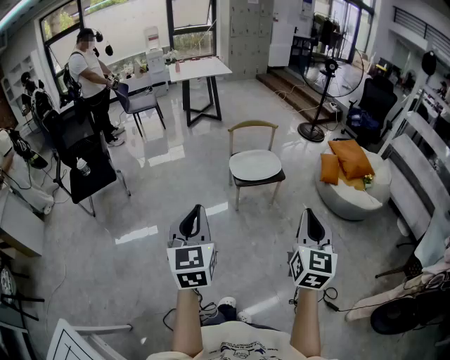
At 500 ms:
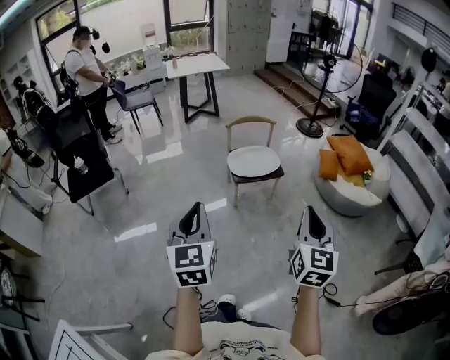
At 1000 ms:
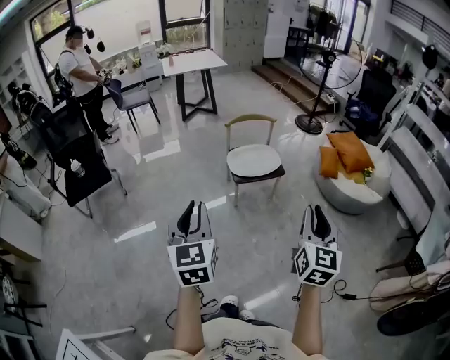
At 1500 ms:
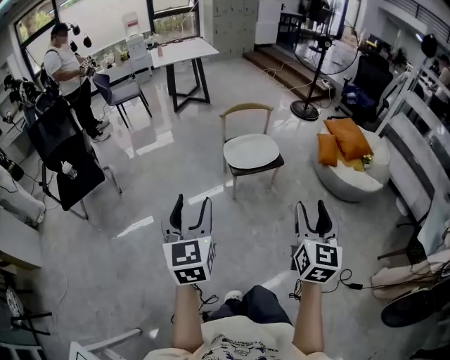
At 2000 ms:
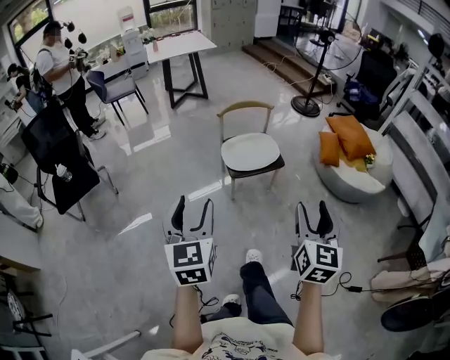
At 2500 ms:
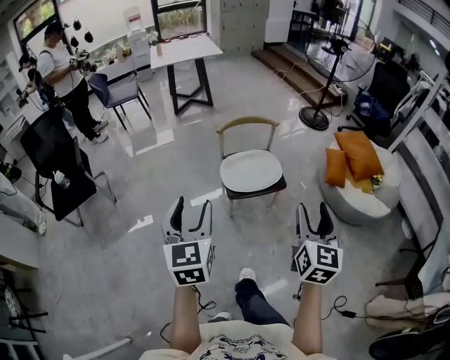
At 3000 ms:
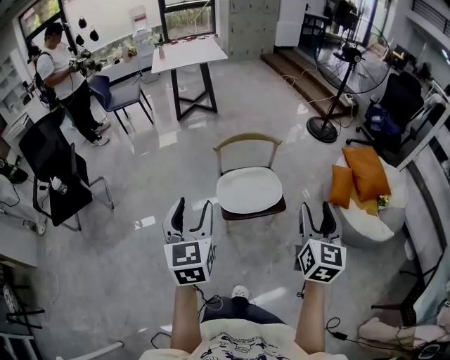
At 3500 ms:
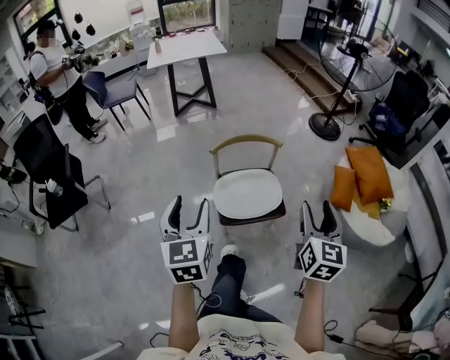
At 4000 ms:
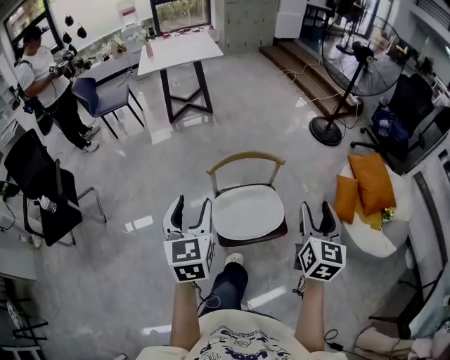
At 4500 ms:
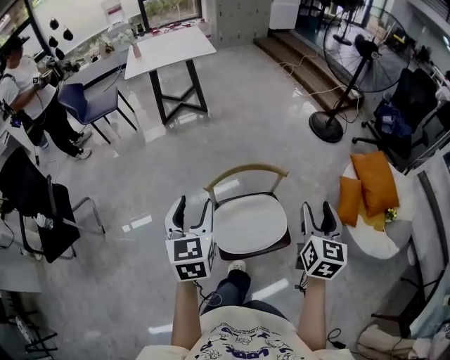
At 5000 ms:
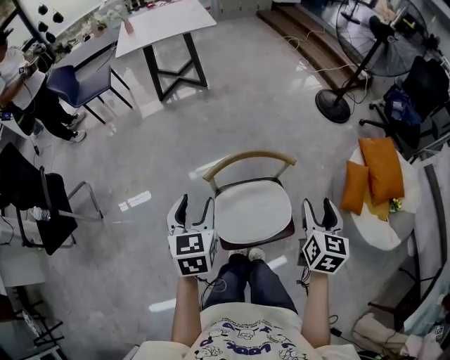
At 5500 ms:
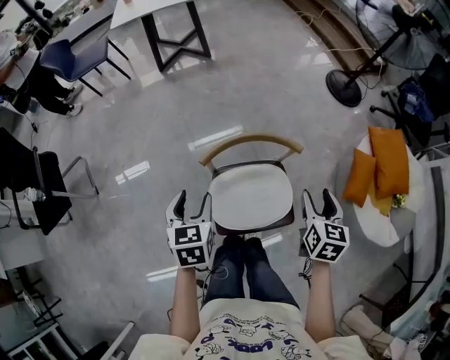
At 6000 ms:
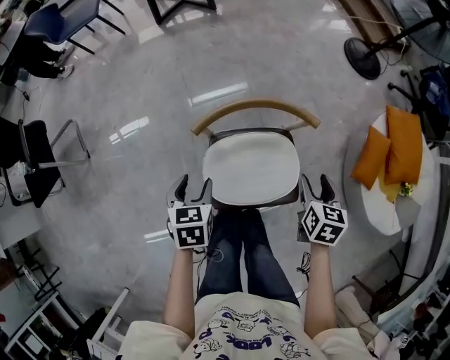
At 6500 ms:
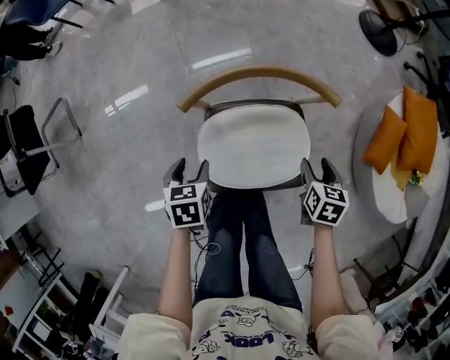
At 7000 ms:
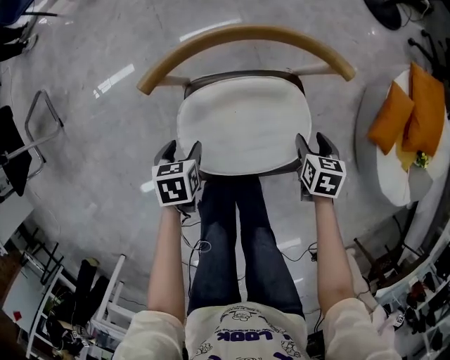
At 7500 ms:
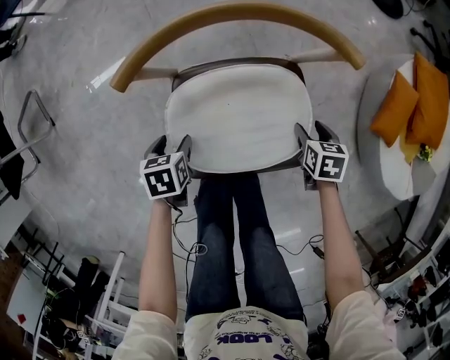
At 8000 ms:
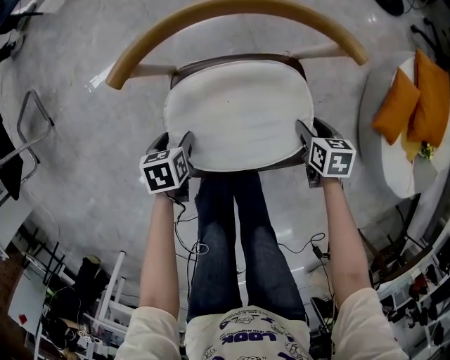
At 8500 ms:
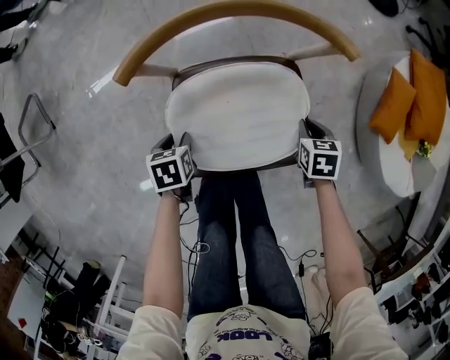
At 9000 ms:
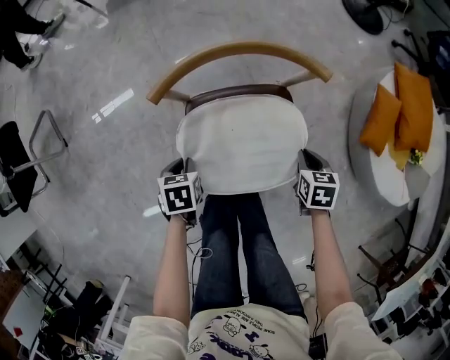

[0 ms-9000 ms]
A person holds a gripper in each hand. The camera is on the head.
0 ms to 2000 ms: Both grippers move forward, roughly 25 cm. The left gripper opens. The right gripper opens.
2000 ms to 4500 ms: Both grippers are carried forward, some 90 cm.
4500 ms to 7000 ms: The two grippers go approximately 70 cm downward. The left gripper angles its fingers downward, by some 50 degrees; the right gripper tips its fingers downward by some 50 degrees.
7000 ms to 9000 ms: The right gripper heads upward, covering some 5 cm, and closes up. The left gripper travels downward and back again, roughly 10 cm each way, and closes up.

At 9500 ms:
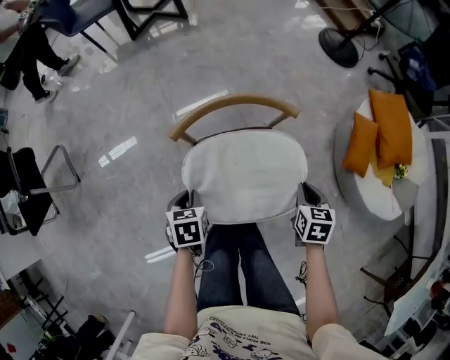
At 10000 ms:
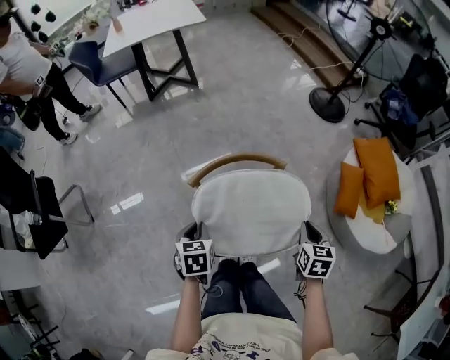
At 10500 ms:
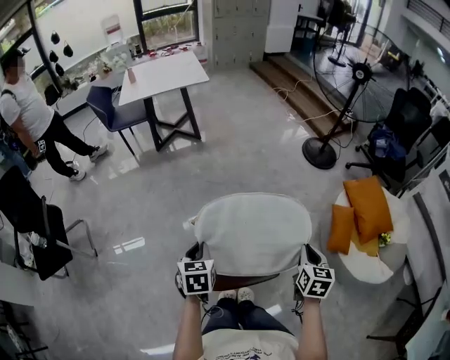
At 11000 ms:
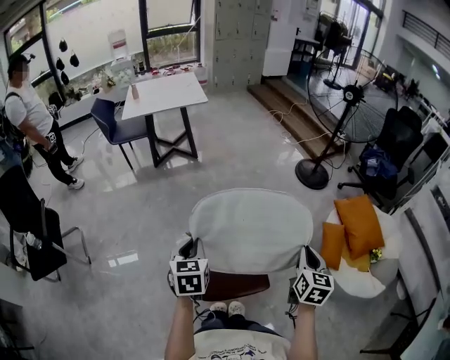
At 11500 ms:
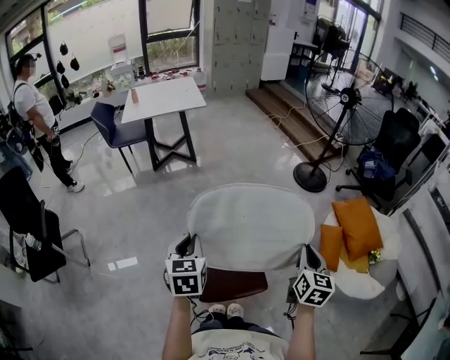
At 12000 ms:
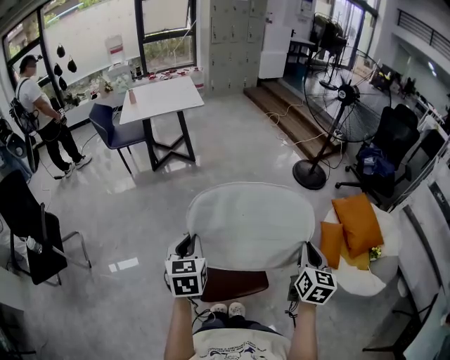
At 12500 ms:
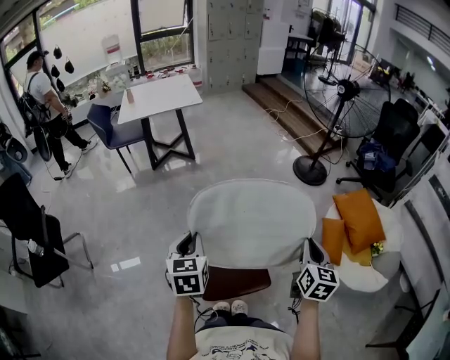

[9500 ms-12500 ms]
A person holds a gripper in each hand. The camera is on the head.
9500 ms to 11000 ms: The two grippers go some 40 cm upward. The left gripper angles its fingers upward, by some 30 degrees, while the right gripper tips its fingers upward by roughly 30 degrees.
11000 ms to 12500 ms: The grippers stay close to where they were, moving slightly.

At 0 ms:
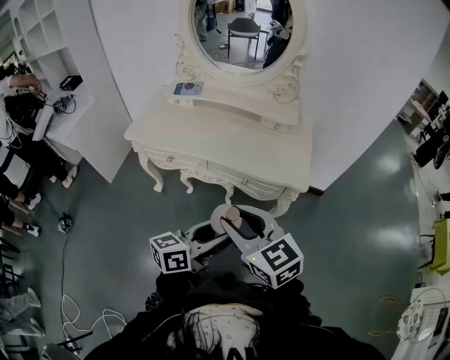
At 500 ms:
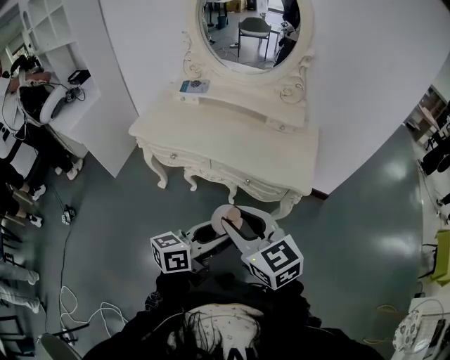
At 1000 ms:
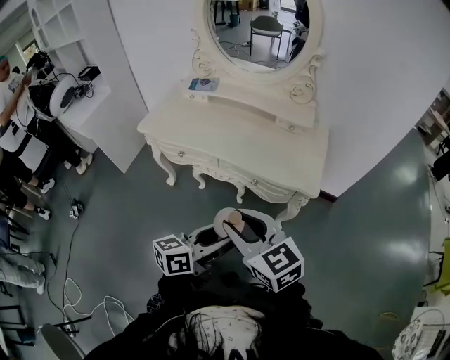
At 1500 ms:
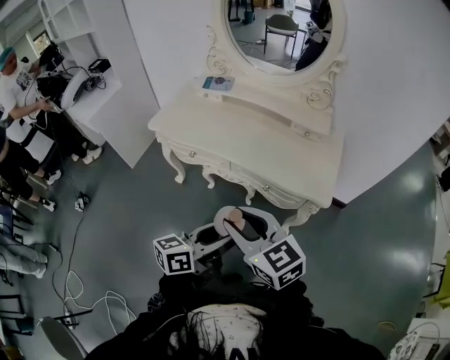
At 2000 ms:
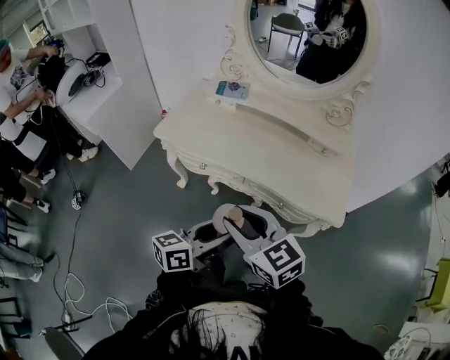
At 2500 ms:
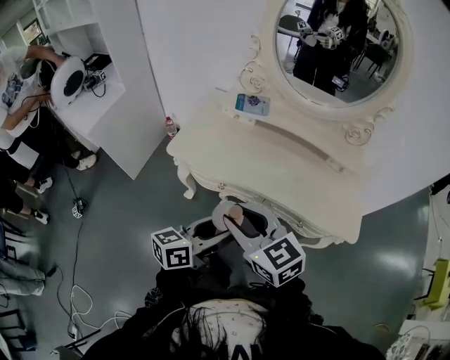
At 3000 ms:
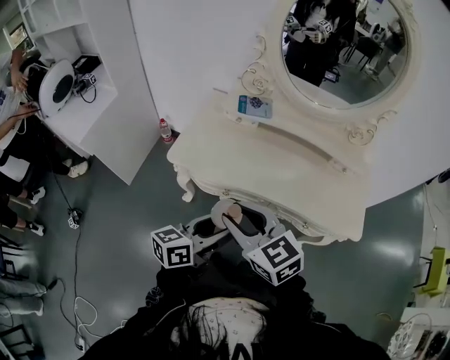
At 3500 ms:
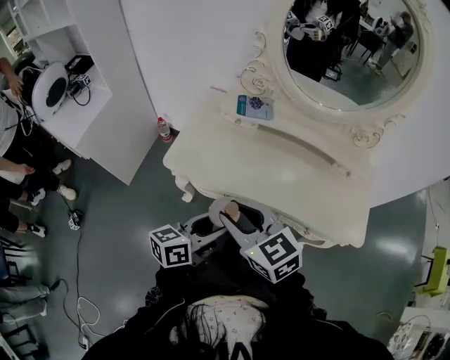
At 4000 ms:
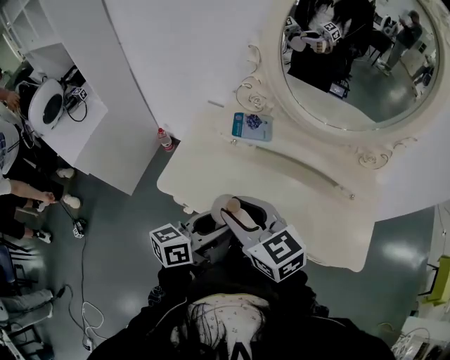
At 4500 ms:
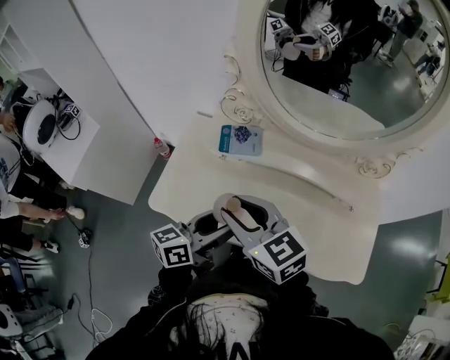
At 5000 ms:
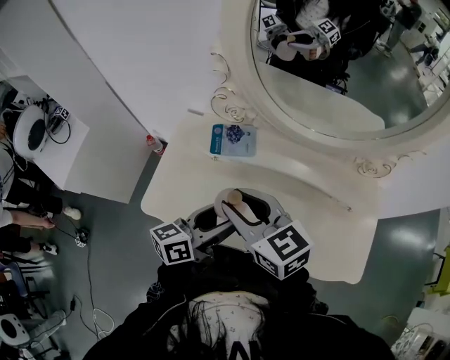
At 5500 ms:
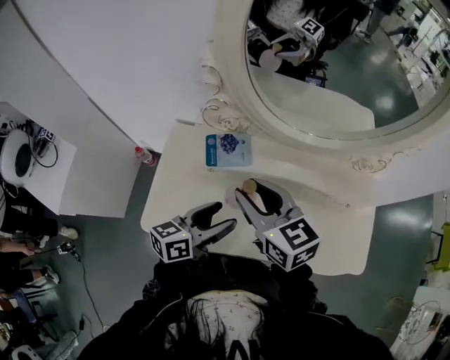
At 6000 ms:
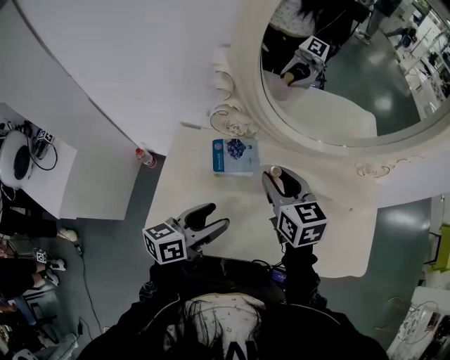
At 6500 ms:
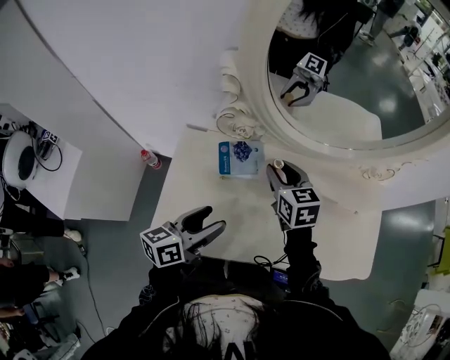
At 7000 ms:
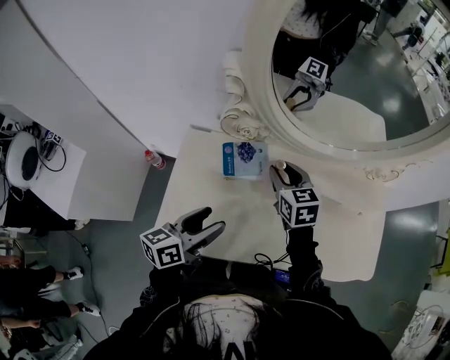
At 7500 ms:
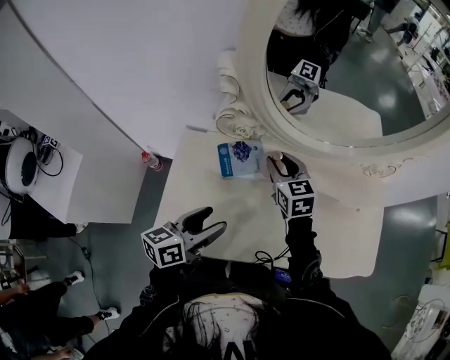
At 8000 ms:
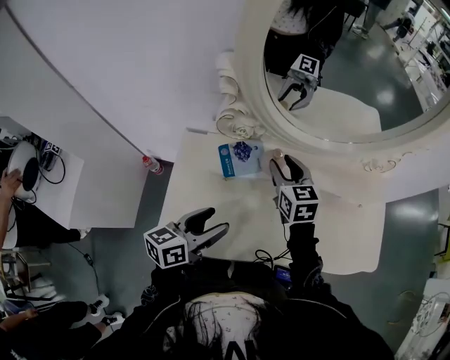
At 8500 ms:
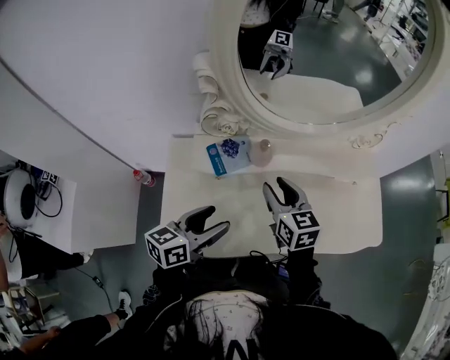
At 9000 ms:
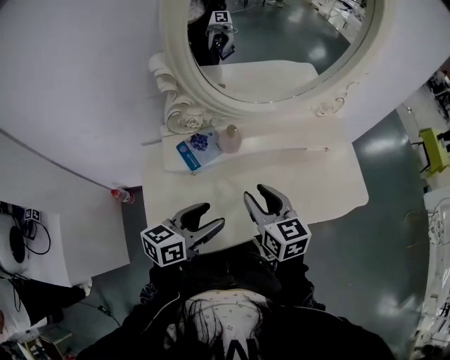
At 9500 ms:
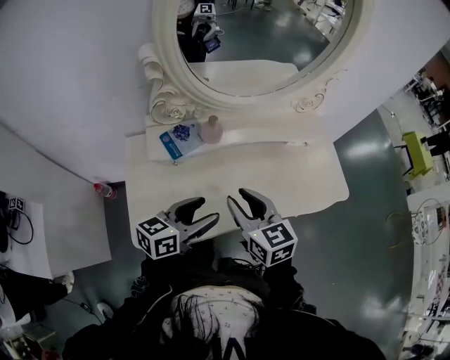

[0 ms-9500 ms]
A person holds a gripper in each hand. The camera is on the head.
0 ms to 2000 ms: Both grippers move to the left and forward, approximately 15 cm.
2000 ms to 4000 ms: The two grippers go some 30 cm forward and to the left.
4000 ms to 5500 ms: The grippers both shift forward by about 15 cm.
5500 ms to 7500 ms: The left gripper heads to the left, covering some 10 cm. The right gripper heads forward and downward, covering some 20 cm.
7500 ms to 9500 ms: The right gripper travels backward by approximately 25 cm. The left gripper moves to the right, about 10 cm, and changes its angle by some 30 degrees.

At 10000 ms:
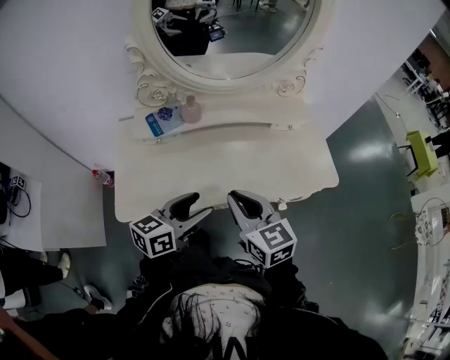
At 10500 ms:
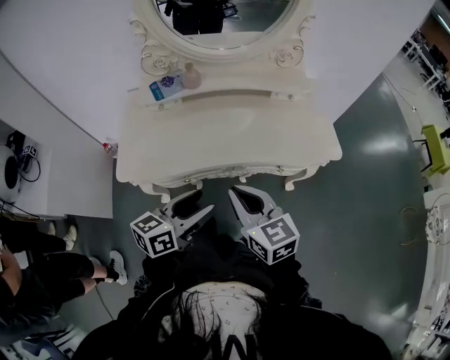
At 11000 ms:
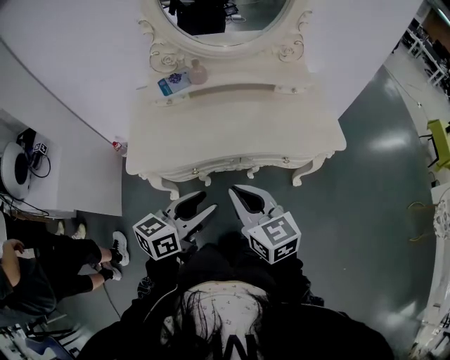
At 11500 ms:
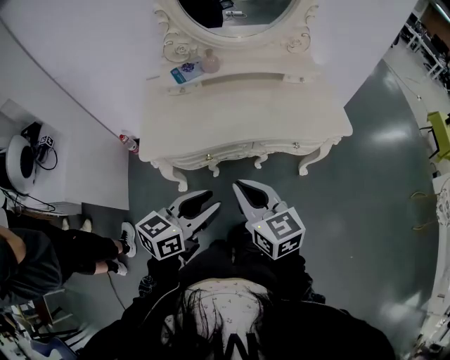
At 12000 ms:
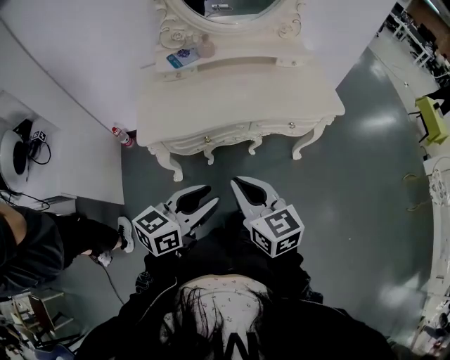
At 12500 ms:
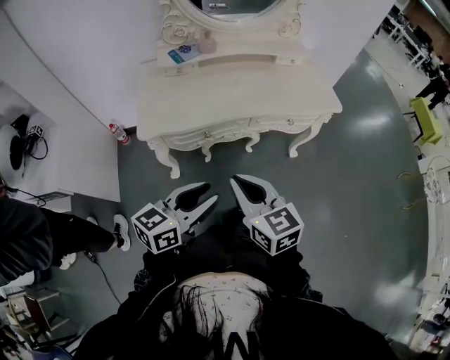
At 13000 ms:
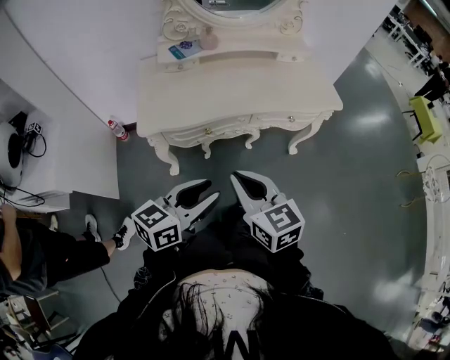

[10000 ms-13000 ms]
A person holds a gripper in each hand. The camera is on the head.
10000 ms to 11500 ms: Both grippers travel together backward, some 20 cm. The left gripper closes its fingers.
11500 ms to 13000 ms: The two grippers go roughly 10 cm backward.

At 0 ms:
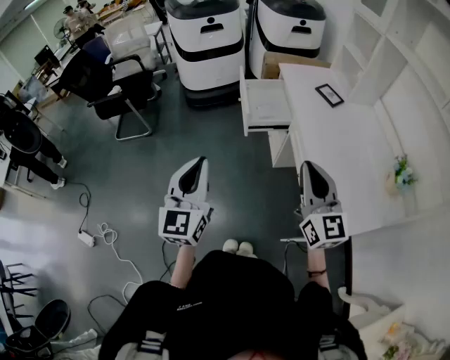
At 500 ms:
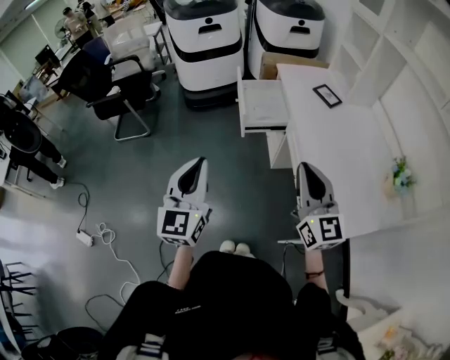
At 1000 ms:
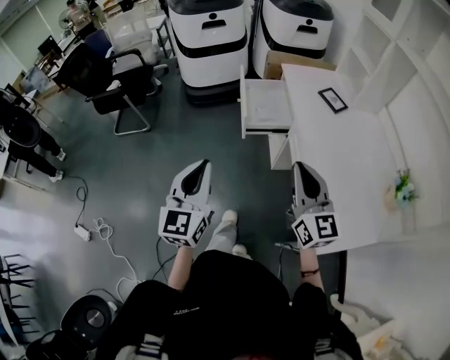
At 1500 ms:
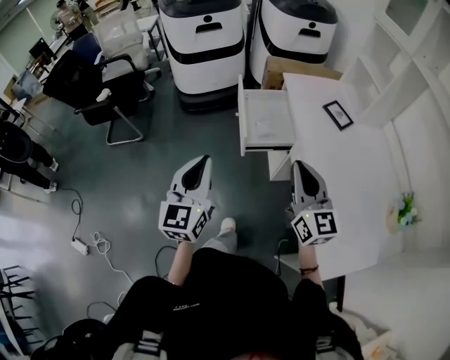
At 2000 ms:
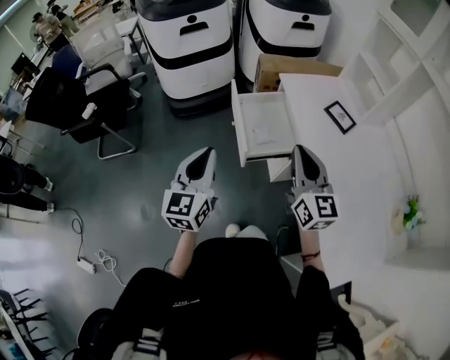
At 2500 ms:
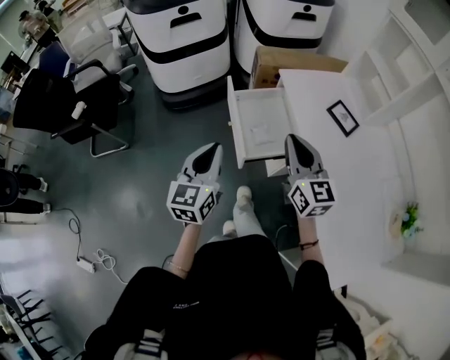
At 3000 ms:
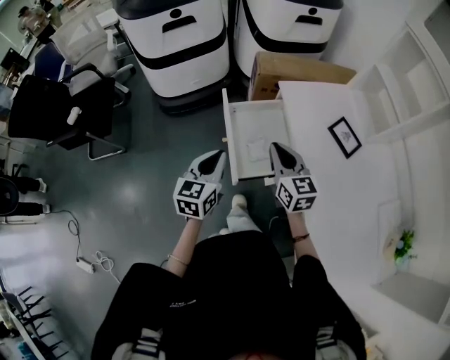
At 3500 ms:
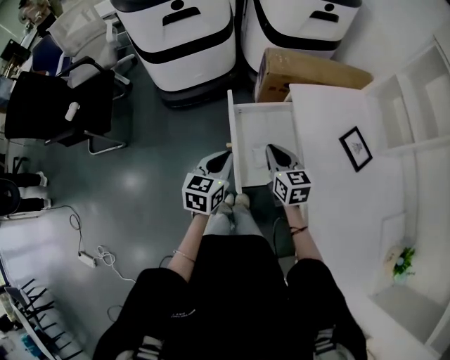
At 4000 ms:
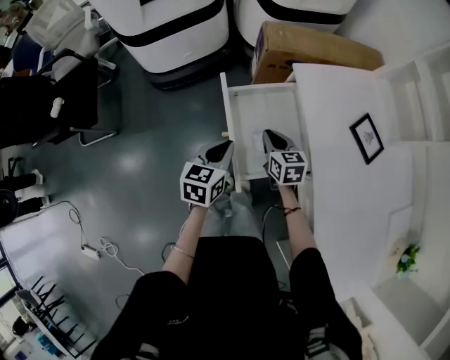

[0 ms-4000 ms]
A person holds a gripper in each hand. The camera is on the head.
0 ms to 2000 ms: The two grippers go roughly 30 cm forward.
2000 ms to 4000 ms: The left gripper heads forward and downward, covering some 35 cm, and swivels roughly 30 degrees; the right gripper travels downward and forward by roughly 40 cm, and tips its fingers downward by about 40 degrees.
